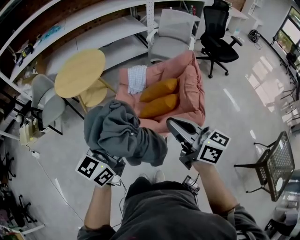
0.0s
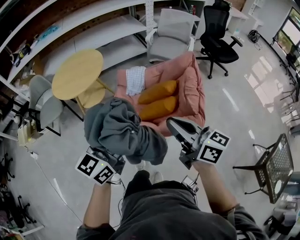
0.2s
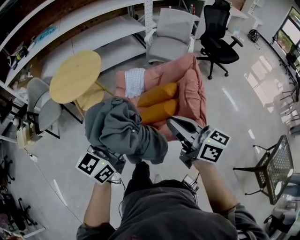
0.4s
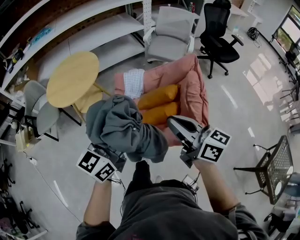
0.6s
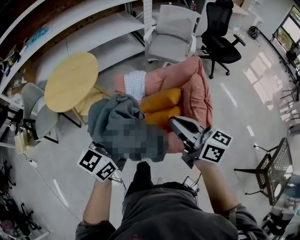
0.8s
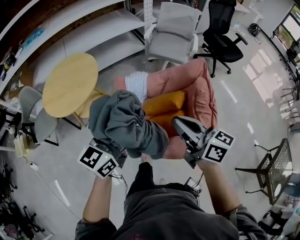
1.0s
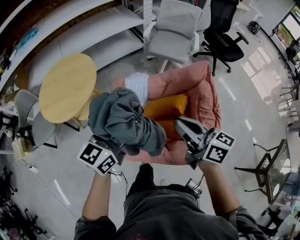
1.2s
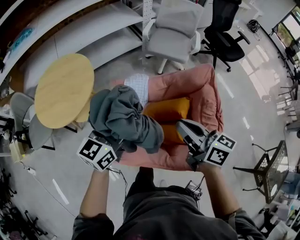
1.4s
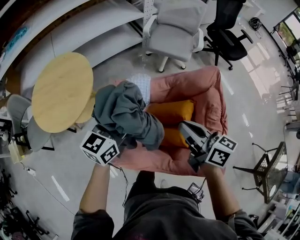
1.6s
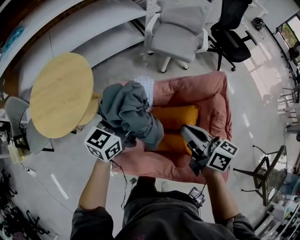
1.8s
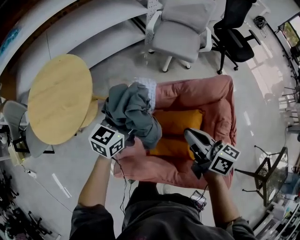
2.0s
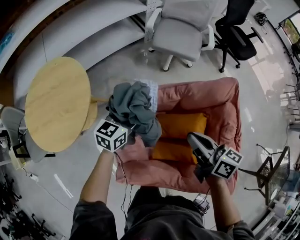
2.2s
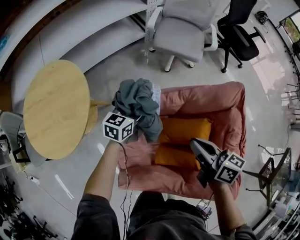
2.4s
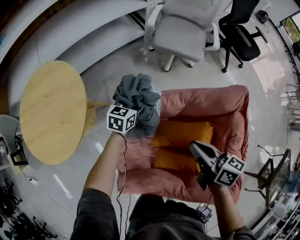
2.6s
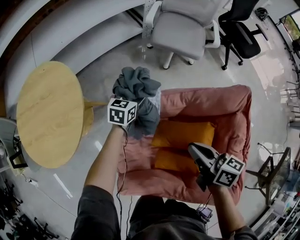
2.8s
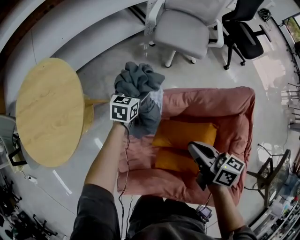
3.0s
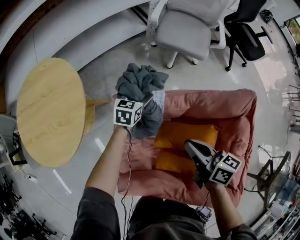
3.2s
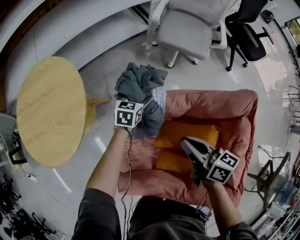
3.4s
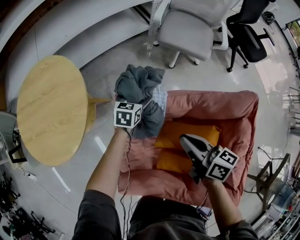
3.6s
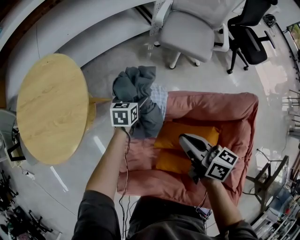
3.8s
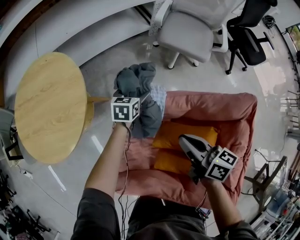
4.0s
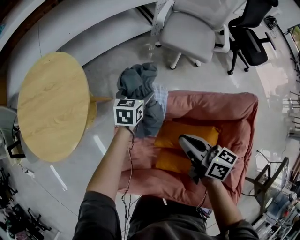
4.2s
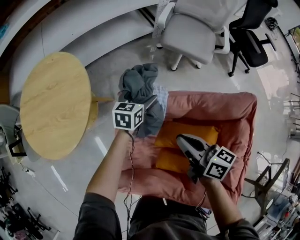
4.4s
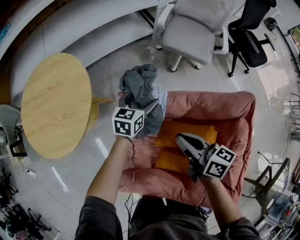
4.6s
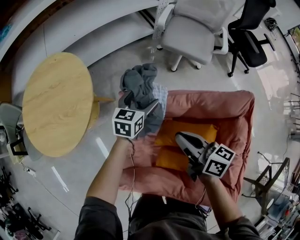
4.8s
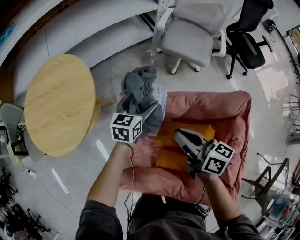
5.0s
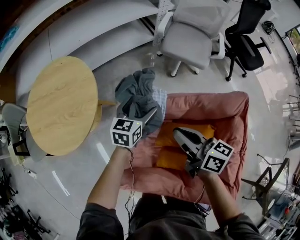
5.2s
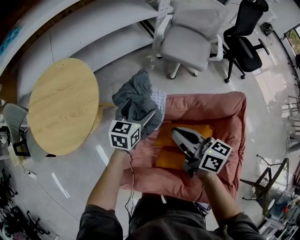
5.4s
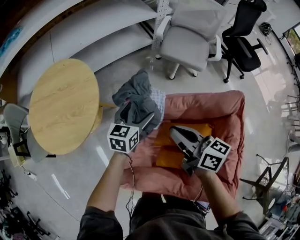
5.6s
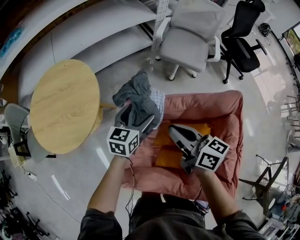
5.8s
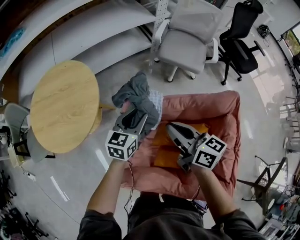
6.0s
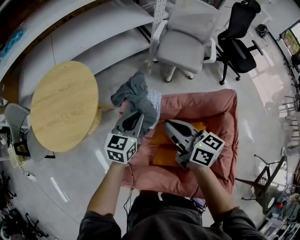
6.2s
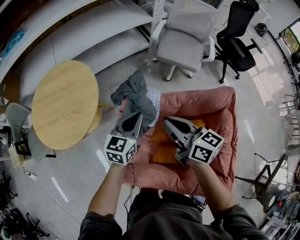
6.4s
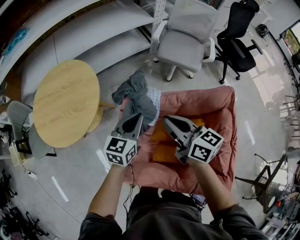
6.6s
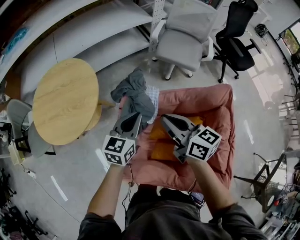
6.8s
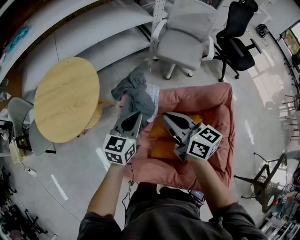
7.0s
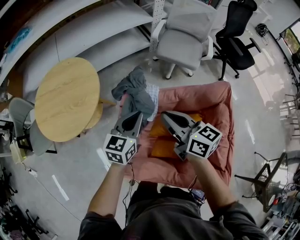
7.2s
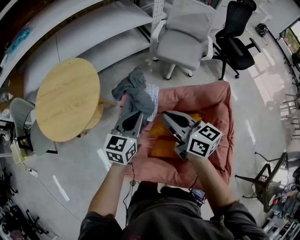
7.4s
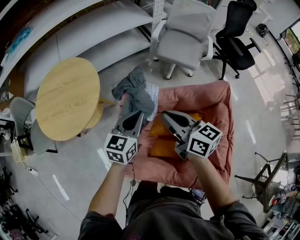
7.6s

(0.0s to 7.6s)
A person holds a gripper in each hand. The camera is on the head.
0.0s - 1.6s: Both grippers travel together forward, roughly 40 cm.
1.6s - 3.0s: The left gripper travels downward and forward by roughly 40 cm, and changes its angle by approximately 30 degrees. The right gripper moves downward and forward, about 20 cm.
3.0s - 4.6s: The right gripper shifts approximately 5 cm to the left; the left gripper heads upward, covering roughly 5 cm.
4.6s - 6.0s: The left gripper heads upward and backward, covering about 15 cm, and closes its fingers; the right gripper shifts some 10 cm upward.
6.0s - 7.6s: The right gripper changes place by about 5 cm, while the left gripper moves backward and upward, some 10 cm, and closes.

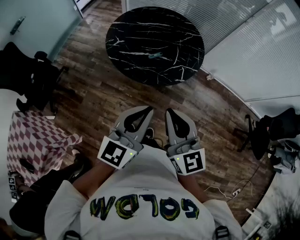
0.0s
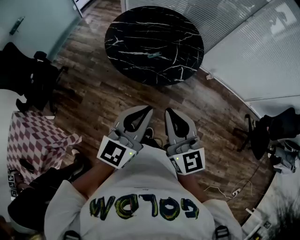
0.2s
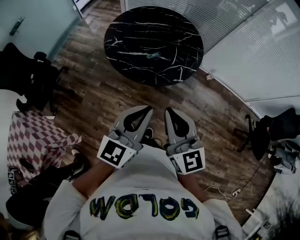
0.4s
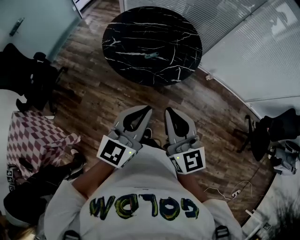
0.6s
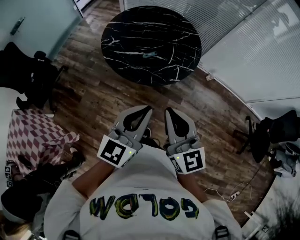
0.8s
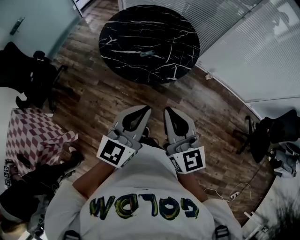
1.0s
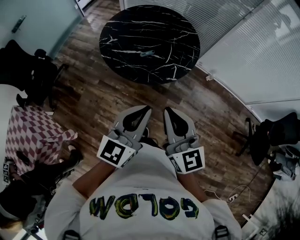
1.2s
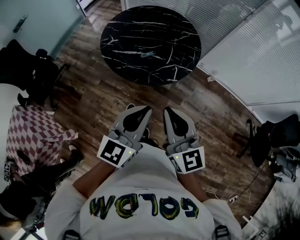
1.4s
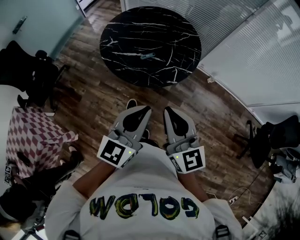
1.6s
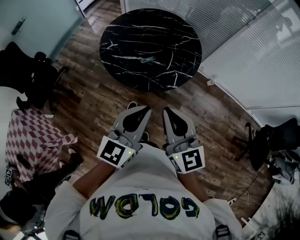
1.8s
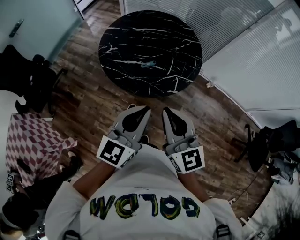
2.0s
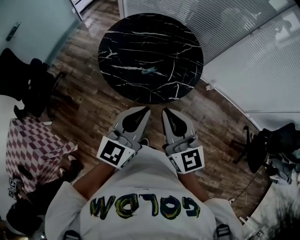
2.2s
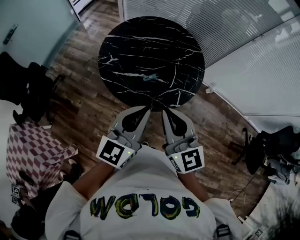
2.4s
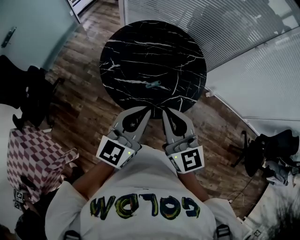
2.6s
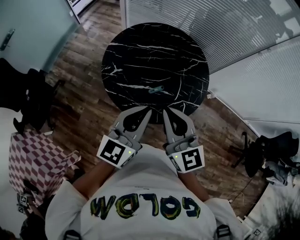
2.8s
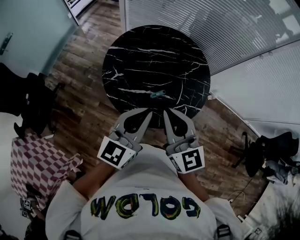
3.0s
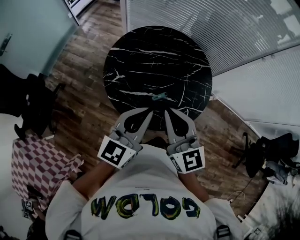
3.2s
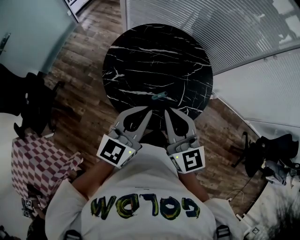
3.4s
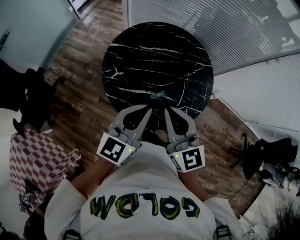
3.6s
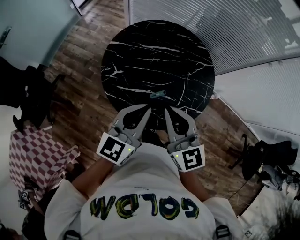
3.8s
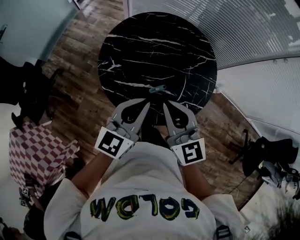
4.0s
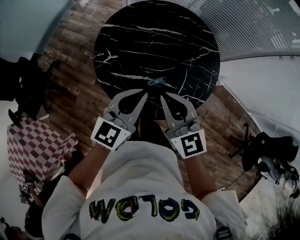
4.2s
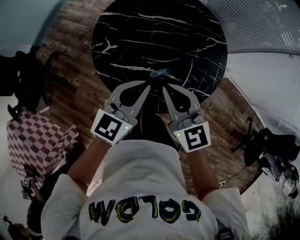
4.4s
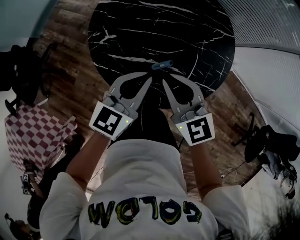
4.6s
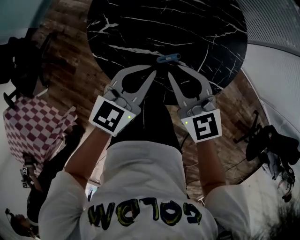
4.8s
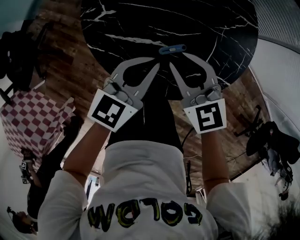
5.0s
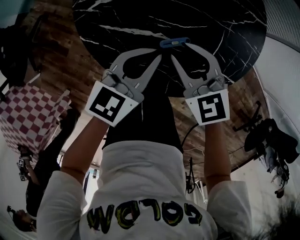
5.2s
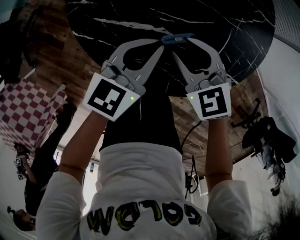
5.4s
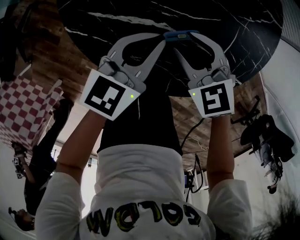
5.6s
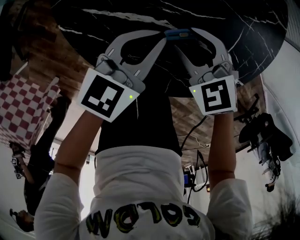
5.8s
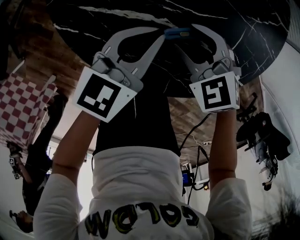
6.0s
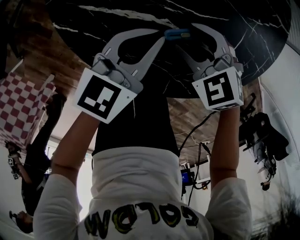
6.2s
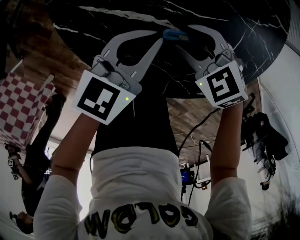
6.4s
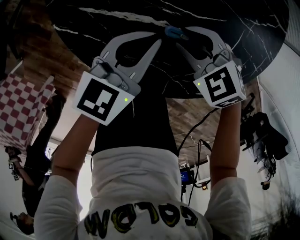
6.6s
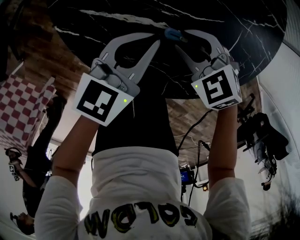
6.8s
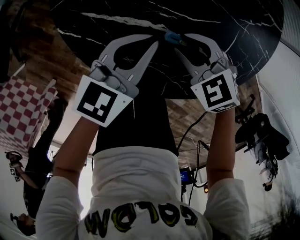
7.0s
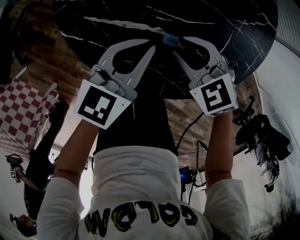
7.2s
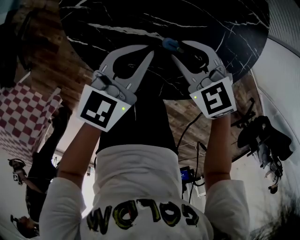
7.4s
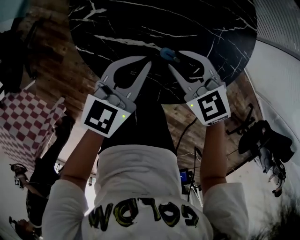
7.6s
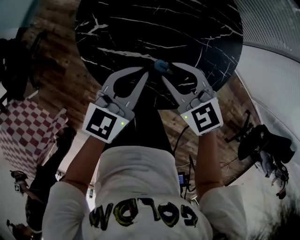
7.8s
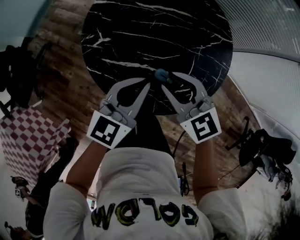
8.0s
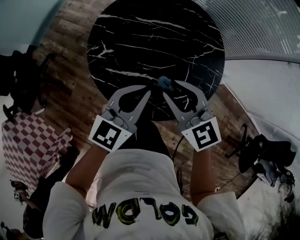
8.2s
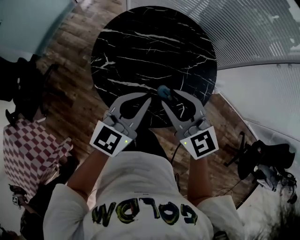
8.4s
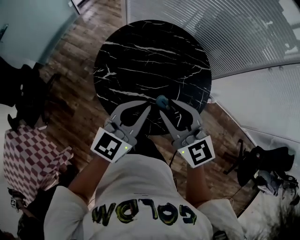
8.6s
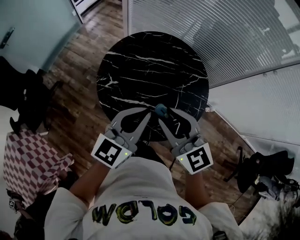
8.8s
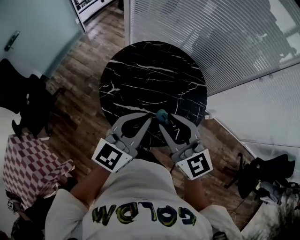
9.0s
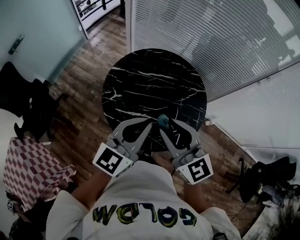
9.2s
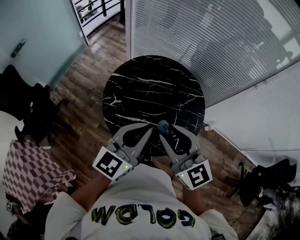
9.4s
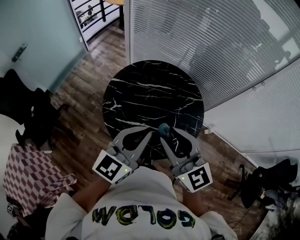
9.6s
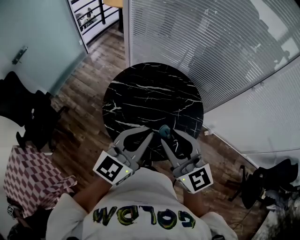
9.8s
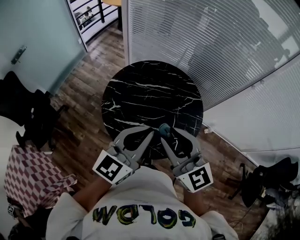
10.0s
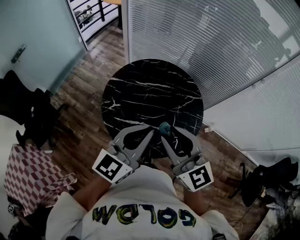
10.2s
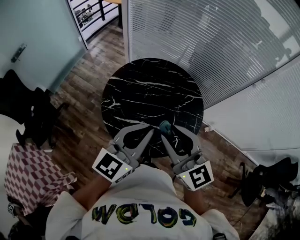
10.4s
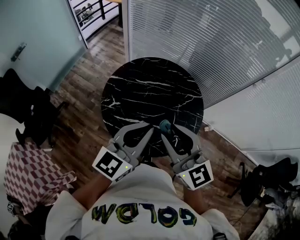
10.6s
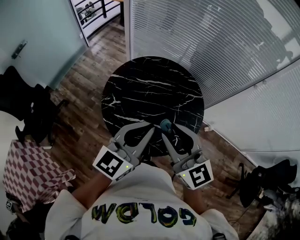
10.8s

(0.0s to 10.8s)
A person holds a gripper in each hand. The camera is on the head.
0.0s - 1.6s: The two grippers go about 10 cm to the right.
1.6s - 3.0s: The grippers both shift forward and to the left by some 30 cm.
3.0s - 4.6s: The two grippers go approximately 20 cm downward and forward. The right gripper swivels approximately 20 degrees.
4.6s - 6.2s: Both grippers travel together downward, roughly 25 cm. The right gripper angles its fingers downward, by about 30 degrees, and opens up.
6.2s - 7.8s: The grippers both shift upward by roughly 15 cm. The right gripper closes.
7.8s - 9.2s: Both grippers travel together upward, roughly 30 cm. The right gripper angles its fingers upward, by roughly 30 degrees.
9.2s - 10.8s: The grippers stay close to where they were, moving slightly.

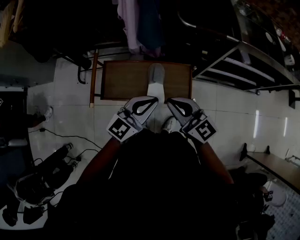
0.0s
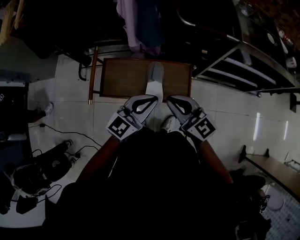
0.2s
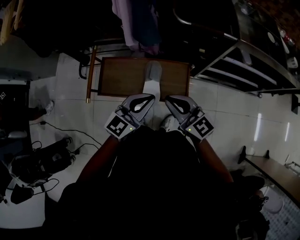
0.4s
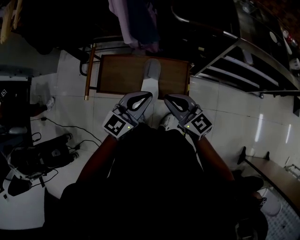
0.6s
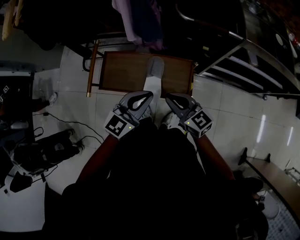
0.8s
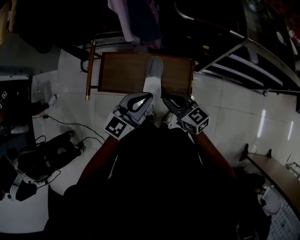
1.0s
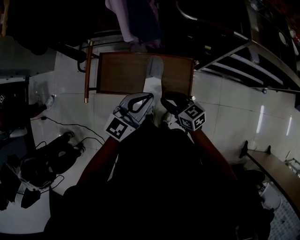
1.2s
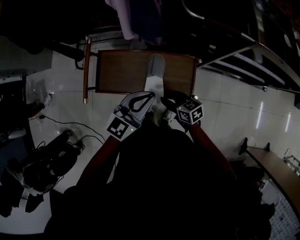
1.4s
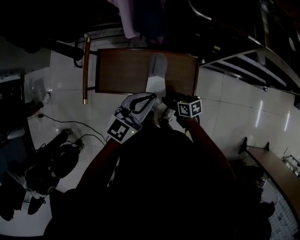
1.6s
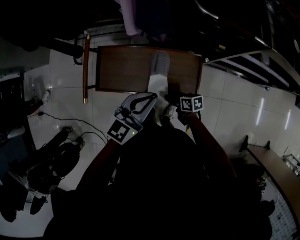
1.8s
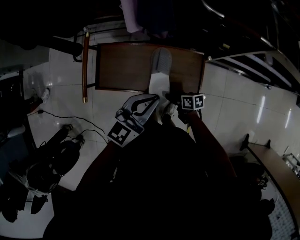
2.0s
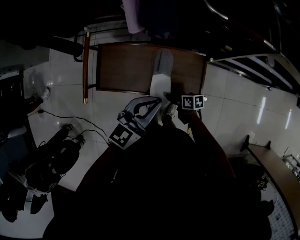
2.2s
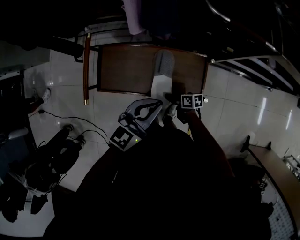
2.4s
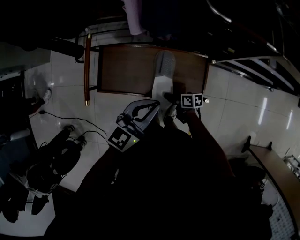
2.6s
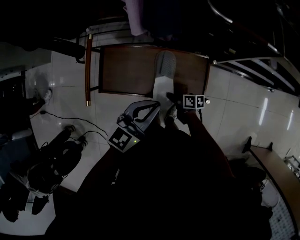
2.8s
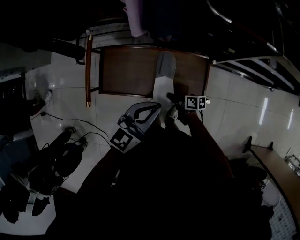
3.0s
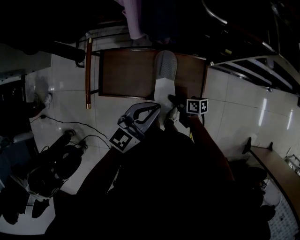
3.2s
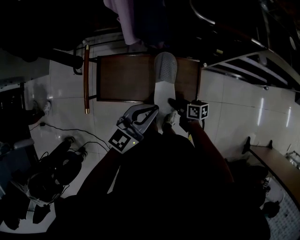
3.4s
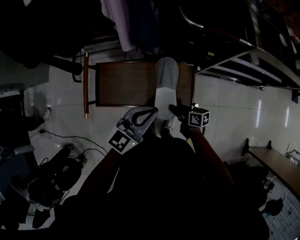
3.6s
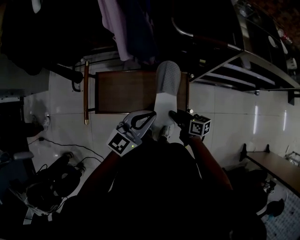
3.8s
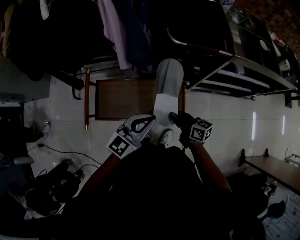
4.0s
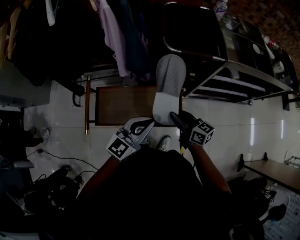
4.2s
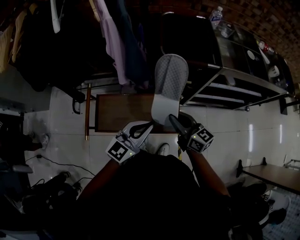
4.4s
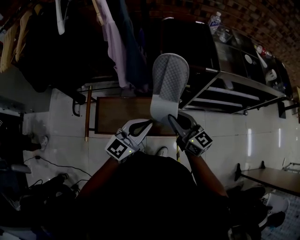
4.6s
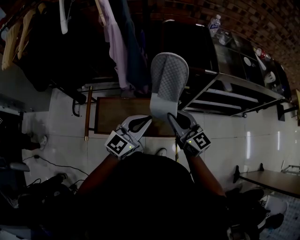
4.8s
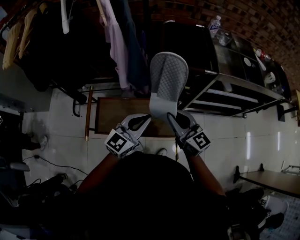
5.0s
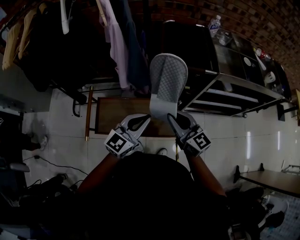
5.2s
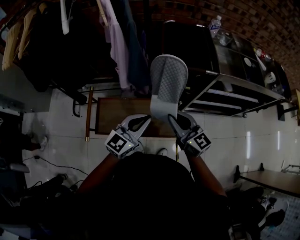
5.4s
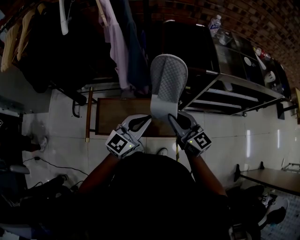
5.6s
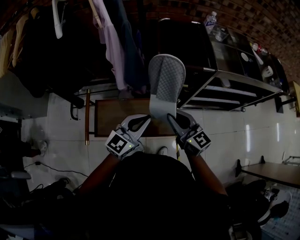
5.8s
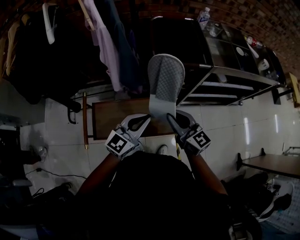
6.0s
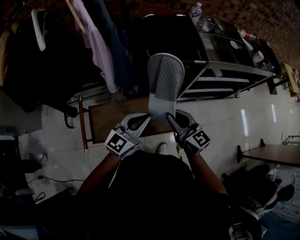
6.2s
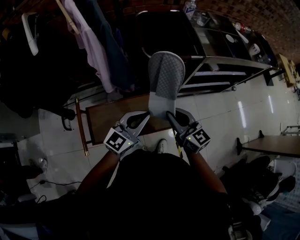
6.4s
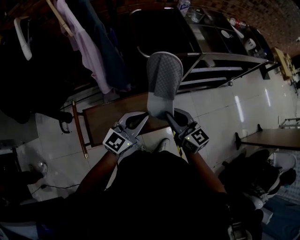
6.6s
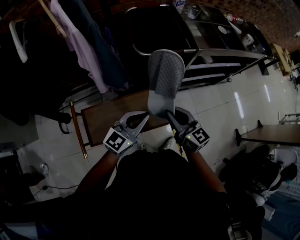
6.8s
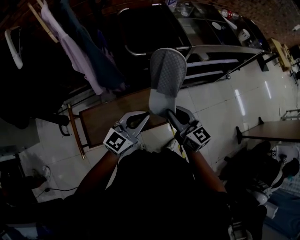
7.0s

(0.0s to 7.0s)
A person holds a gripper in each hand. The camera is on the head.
0.0s - 1.4s: The left gripper is displaced downward by approximately 5 cm, while the right gripper shifts some 25 cm downward, swivels approximately 40 degrees, and opens its fingers.
1.4s - 2.8s: The right gripper shifts roughly 15 cm downward, and turns by roughly 40 degrees; the left gripper shifts by some 5 cm.
2.8s - 4.2s: The left gripper travels upward and to the right by roughly 10 cm; the right gripper heads upward, covering approximately 30 cm, and rotates about 50 degrees.
4.2s - 5.6s: The right gripper is displaced upward by about 10 cm, and turns by some 30 degrees.
5.6s - 7.0s: Both grippers move to the right, approximately 5 cm. The right gripper changes its angle by about 20 degrees.
